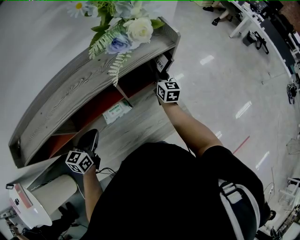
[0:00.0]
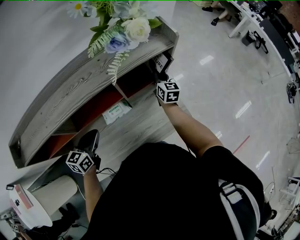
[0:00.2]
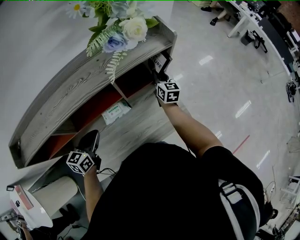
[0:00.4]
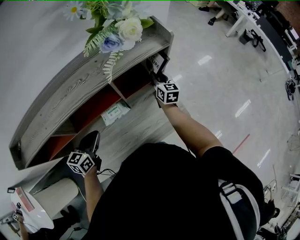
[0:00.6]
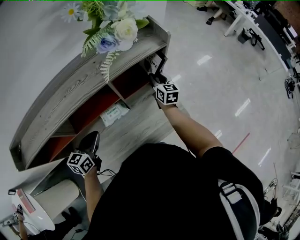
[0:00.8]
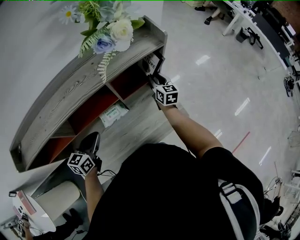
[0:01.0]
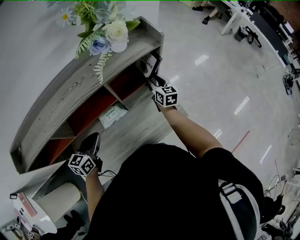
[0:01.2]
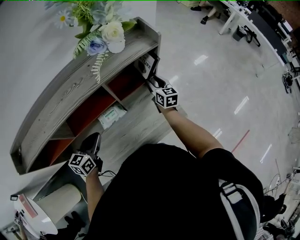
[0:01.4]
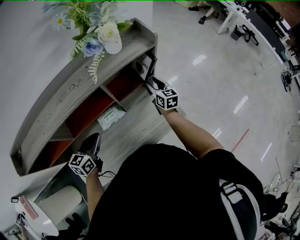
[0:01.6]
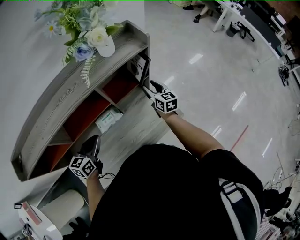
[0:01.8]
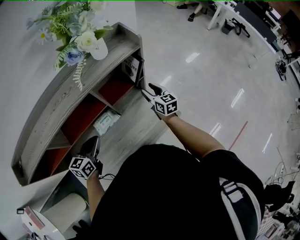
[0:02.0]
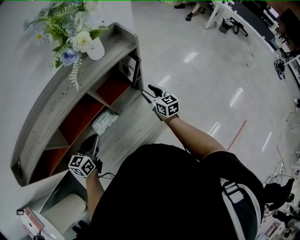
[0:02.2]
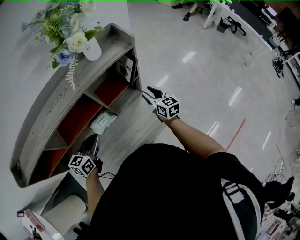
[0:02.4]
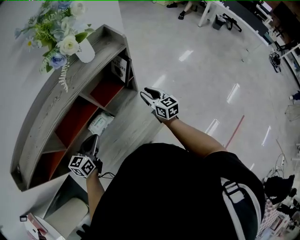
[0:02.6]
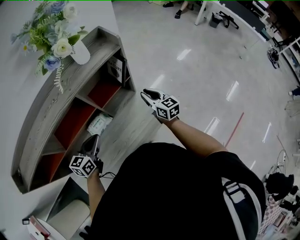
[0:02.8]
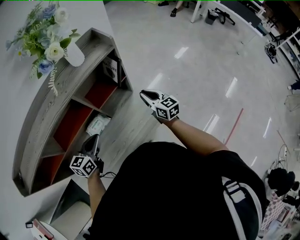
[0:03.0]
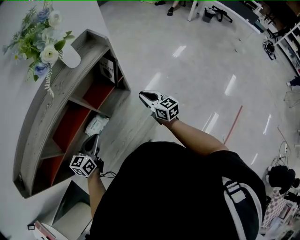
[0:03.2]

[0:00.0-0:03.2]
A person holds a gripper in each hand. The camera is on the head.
0:00.0 to 0:01.6: The right gripper goes approximately 5 cm backward, and opens up.
0:01.6 to 0:03.2: The left gripper goes roughly 10 cm to the right. The right gripper is displaced backward and to the right by roughly 15 cm, and closes its fingers.

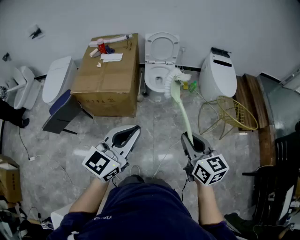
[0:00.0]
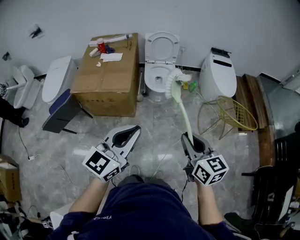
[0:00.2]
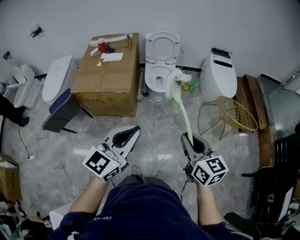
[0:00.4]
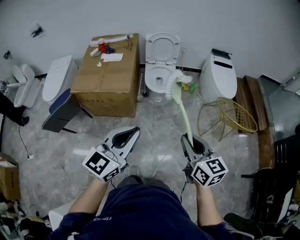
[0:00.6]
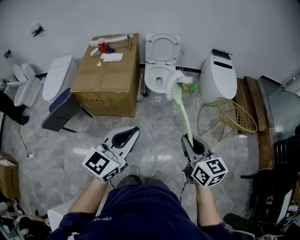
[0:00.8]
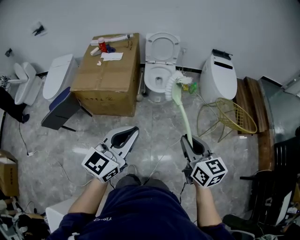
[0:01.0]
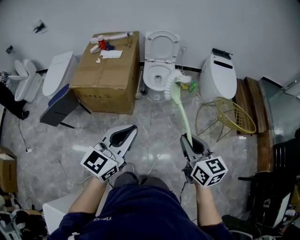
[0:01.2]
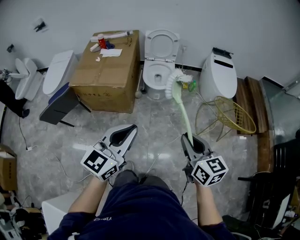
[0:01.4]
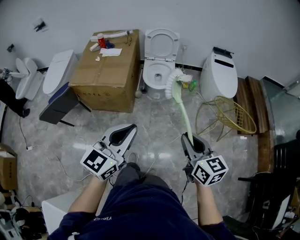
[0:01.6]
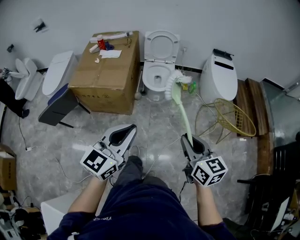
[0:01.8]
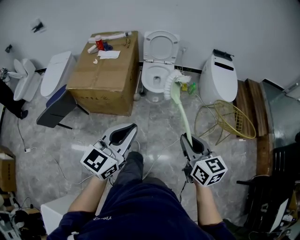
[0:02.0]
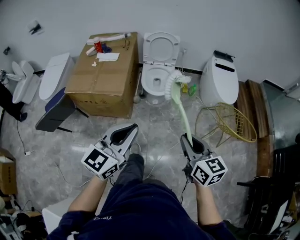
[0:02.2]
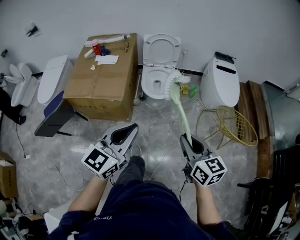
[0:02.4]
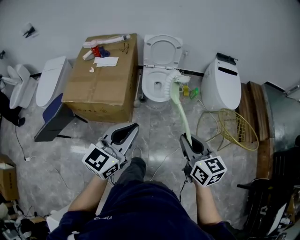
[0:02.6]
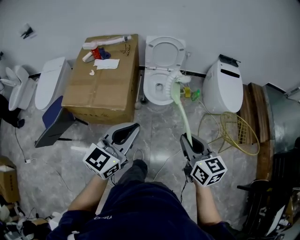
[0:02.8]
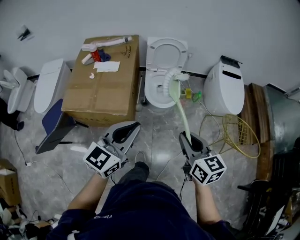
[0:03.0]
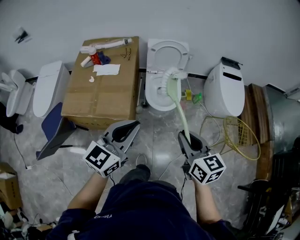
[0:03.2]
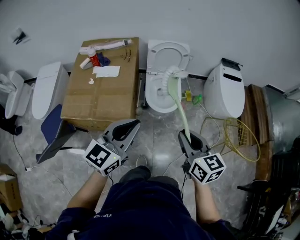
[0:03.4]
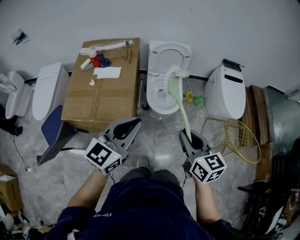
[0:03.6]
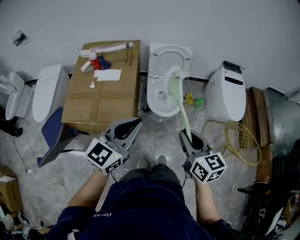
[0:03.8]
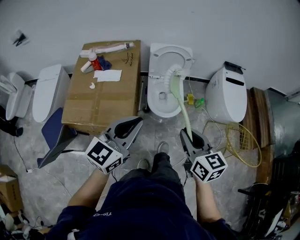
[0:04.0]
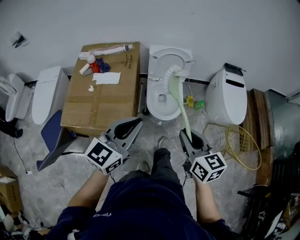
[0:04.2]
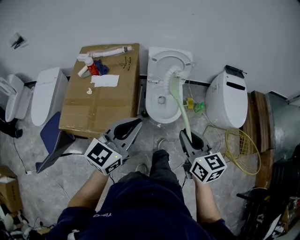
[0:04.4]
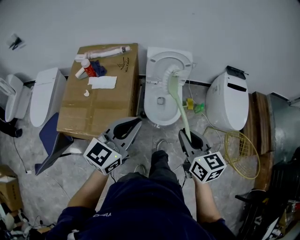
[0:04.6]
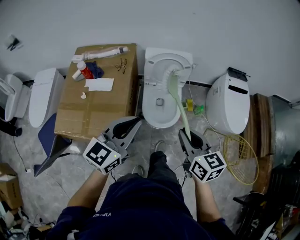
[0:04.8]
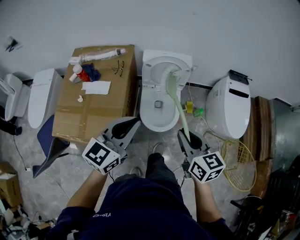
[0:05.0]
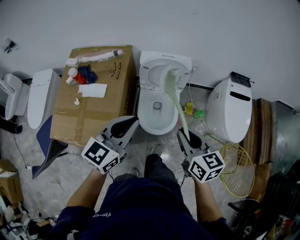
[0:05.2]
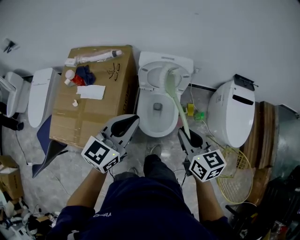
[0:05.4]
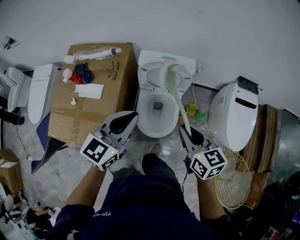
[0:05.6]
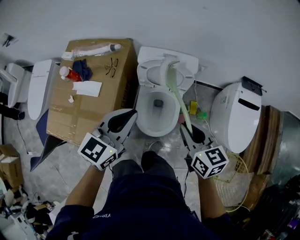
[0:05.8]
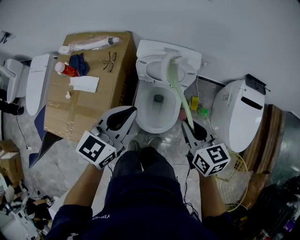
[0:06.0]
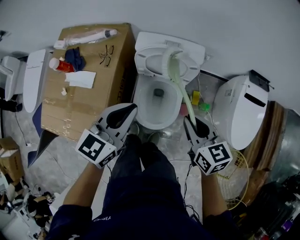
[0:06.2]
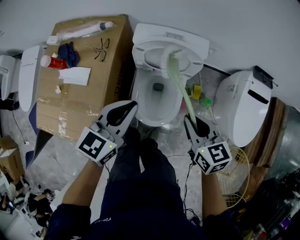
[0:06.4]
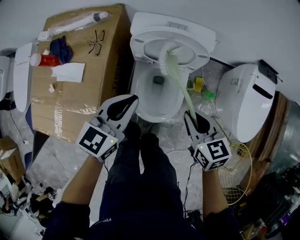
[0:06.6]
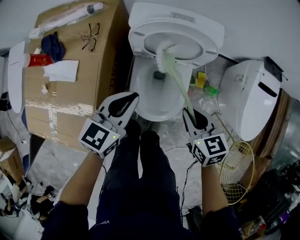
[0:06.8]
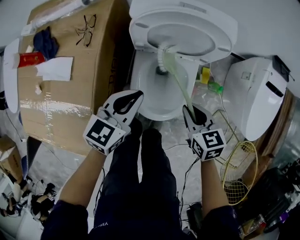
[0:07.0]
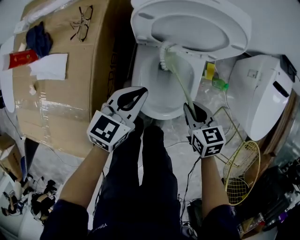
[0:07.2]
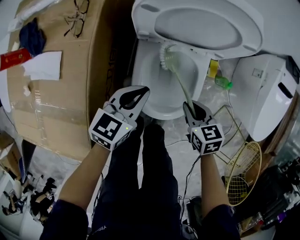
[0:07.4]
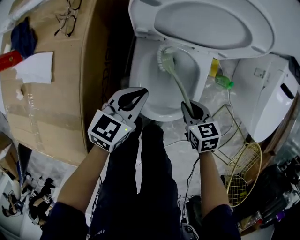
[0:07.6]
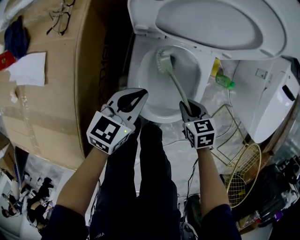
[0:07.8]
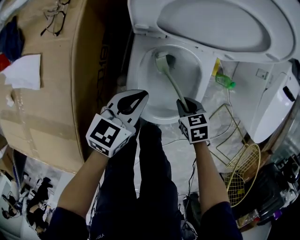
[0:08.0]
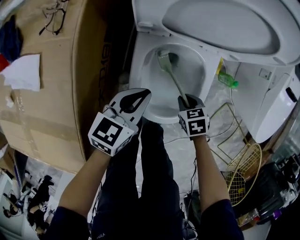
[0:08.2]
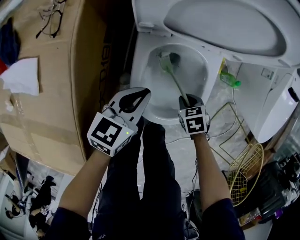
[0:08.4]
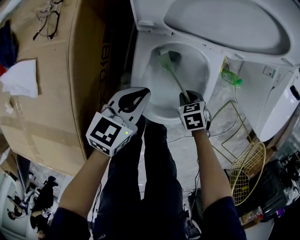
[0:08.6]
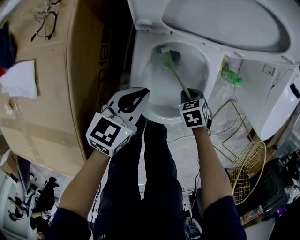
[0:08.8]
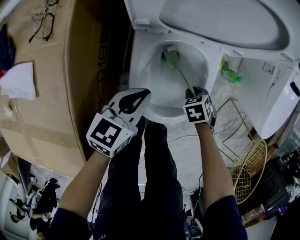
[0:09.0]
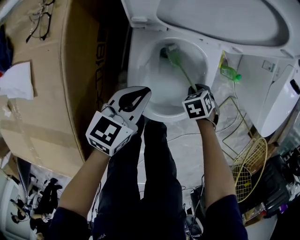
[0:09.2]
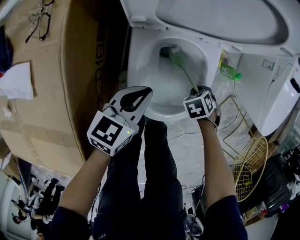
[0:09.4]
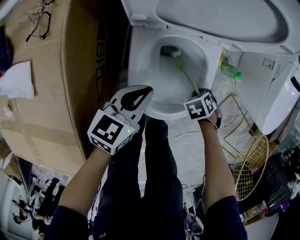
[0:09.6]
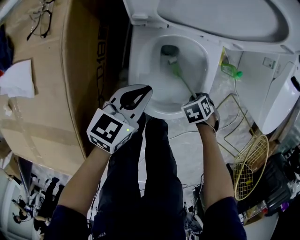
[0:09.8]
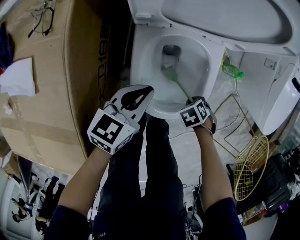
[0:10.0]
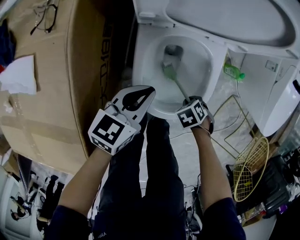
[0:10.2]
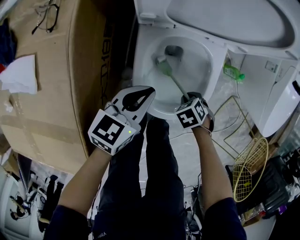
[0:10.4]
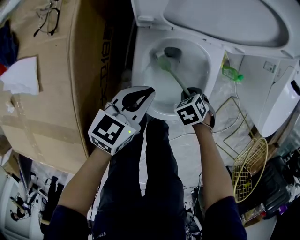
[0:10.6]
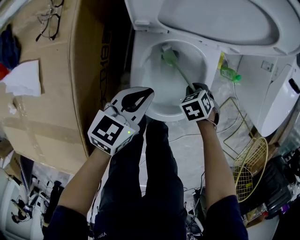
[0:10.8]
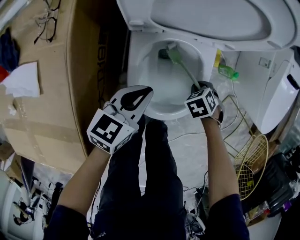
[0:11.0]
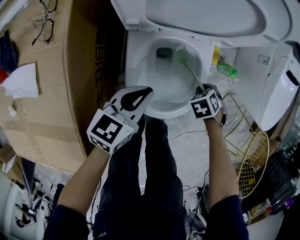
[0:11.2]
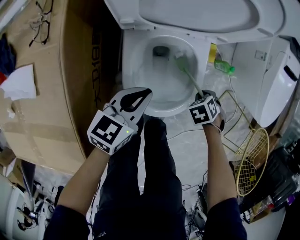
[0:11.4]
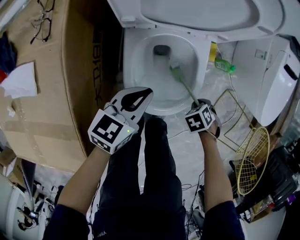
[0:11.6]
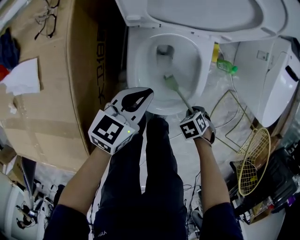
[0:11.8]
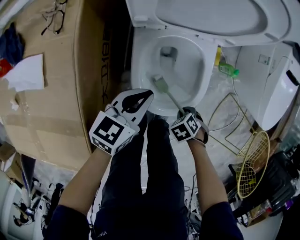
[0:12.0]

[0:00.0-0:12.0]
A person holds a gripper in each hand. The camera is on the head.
0:00.0 to 0:01.6: Both grippers travel together to the right, approximately 5 cm.
0:01.6 to 0:03.0: The right gripper is displaced forward and to the left by roughly 25 cm. The left gripper moves forward, approximately 25 cm.
0:03.0 to 0:04.4: The grippers both shift forward by some 15 cm.
0:04.4 to 0:06.0: Both grippers travel together forward, some 30 cm.
0:06.0 to 0:07.6: The two grippers go roughly 40 cm downward. The left gripper swivels roughly 20 degrees. Meanwhile the right gripper rotates some 30 degrees.
0:07.6 to 0:09.0: The left gripper goes roughly 5 cm downward. The right gripper goes approximately 15 cm downward, and angles its fingers downward, by approximately 30 degrees.
0:09.0 to 0:10.4: The right gripper changes place by some 5 cm.
0:10.4 to 0:12.0: The right gripper shifts by approximately 10 cm.

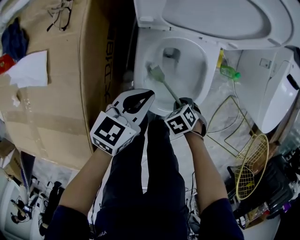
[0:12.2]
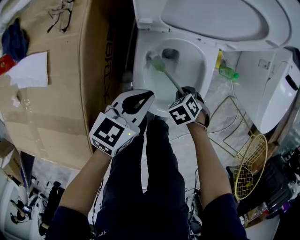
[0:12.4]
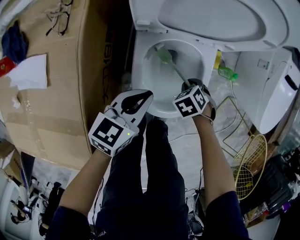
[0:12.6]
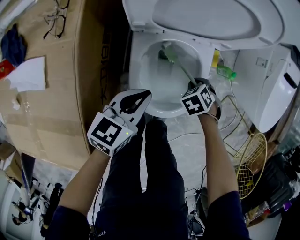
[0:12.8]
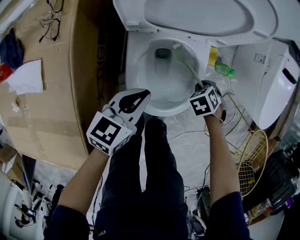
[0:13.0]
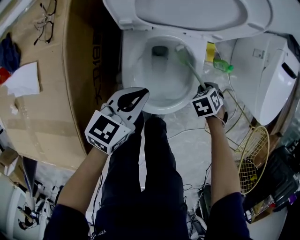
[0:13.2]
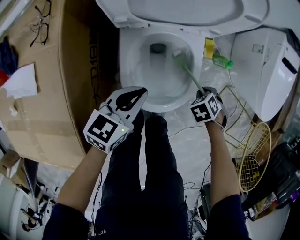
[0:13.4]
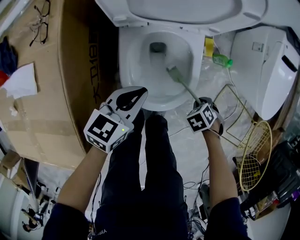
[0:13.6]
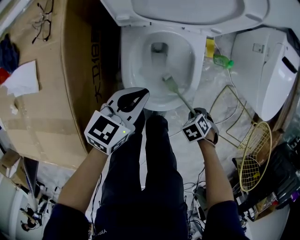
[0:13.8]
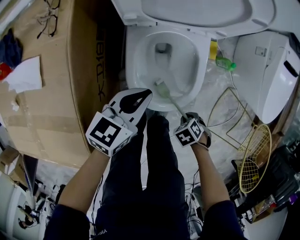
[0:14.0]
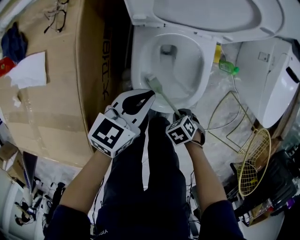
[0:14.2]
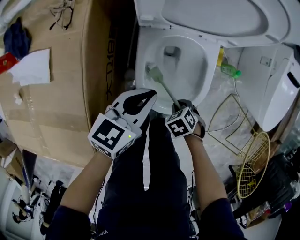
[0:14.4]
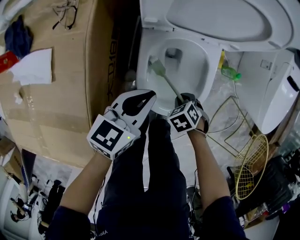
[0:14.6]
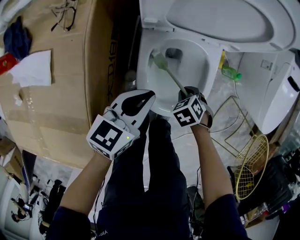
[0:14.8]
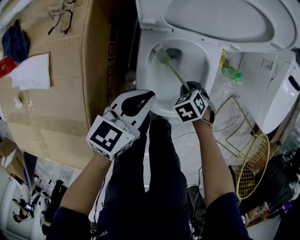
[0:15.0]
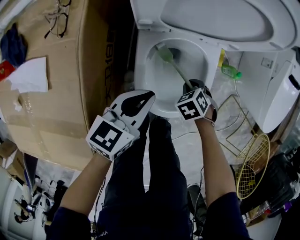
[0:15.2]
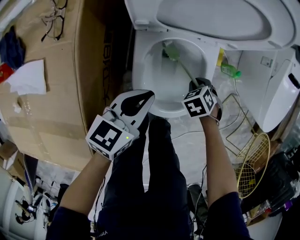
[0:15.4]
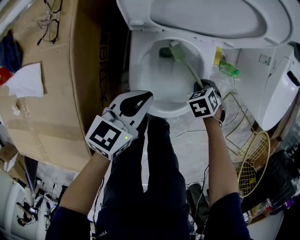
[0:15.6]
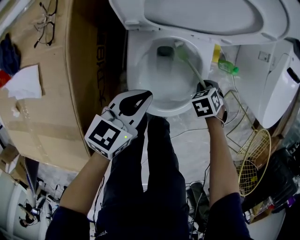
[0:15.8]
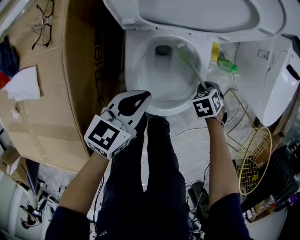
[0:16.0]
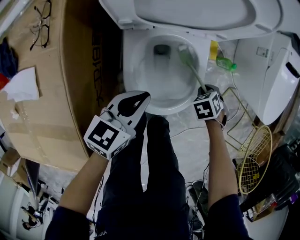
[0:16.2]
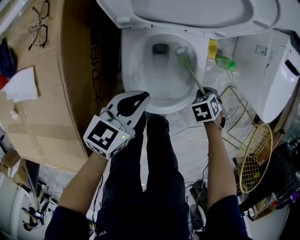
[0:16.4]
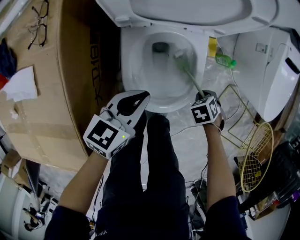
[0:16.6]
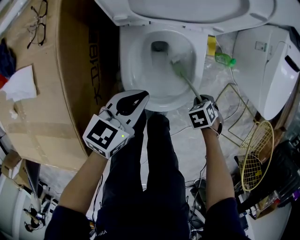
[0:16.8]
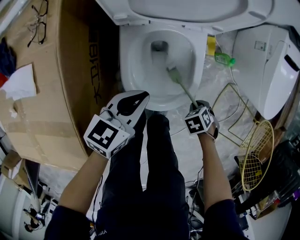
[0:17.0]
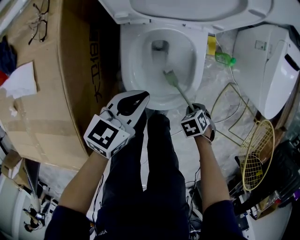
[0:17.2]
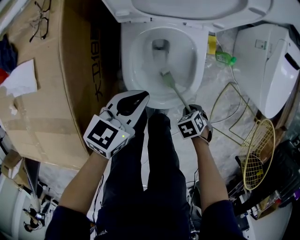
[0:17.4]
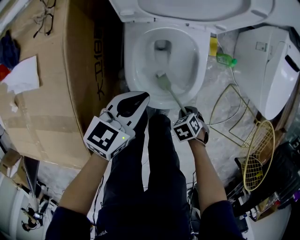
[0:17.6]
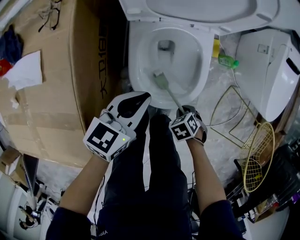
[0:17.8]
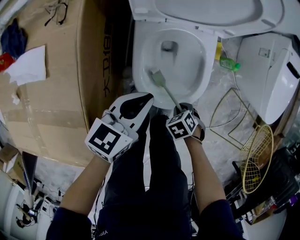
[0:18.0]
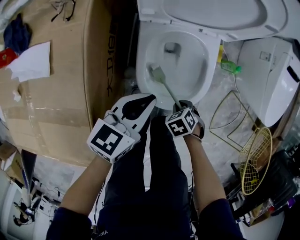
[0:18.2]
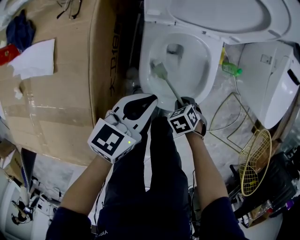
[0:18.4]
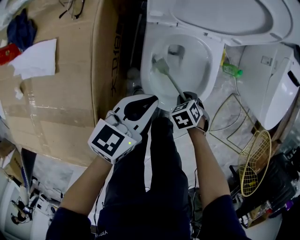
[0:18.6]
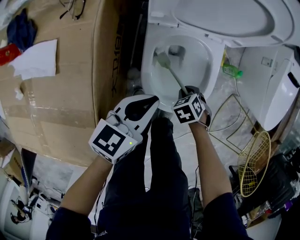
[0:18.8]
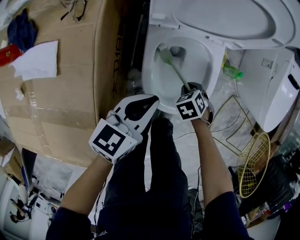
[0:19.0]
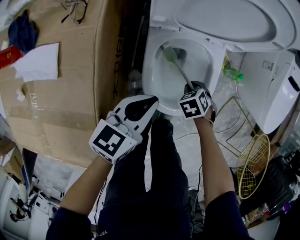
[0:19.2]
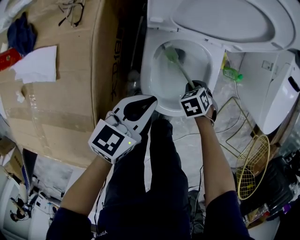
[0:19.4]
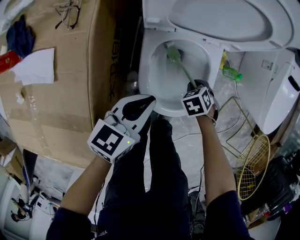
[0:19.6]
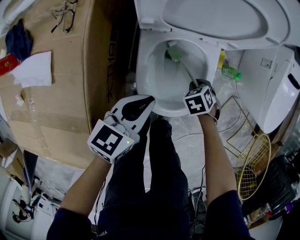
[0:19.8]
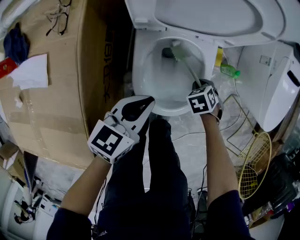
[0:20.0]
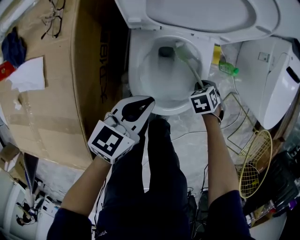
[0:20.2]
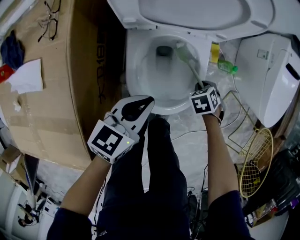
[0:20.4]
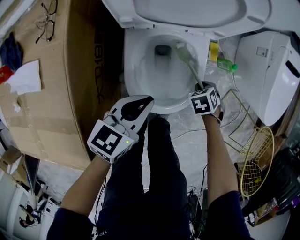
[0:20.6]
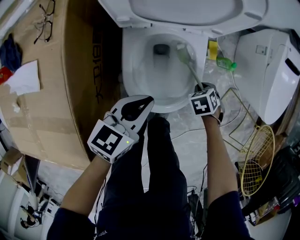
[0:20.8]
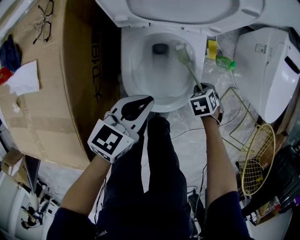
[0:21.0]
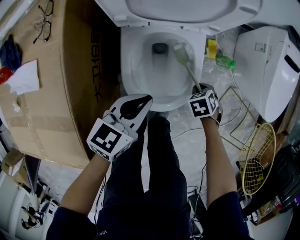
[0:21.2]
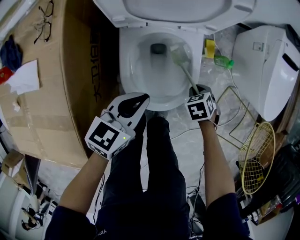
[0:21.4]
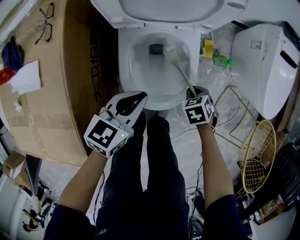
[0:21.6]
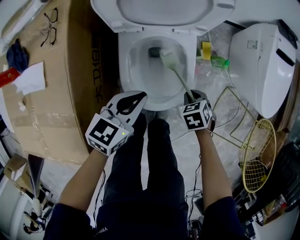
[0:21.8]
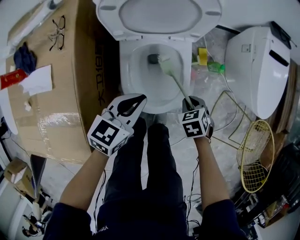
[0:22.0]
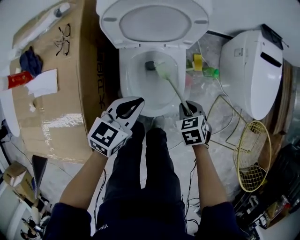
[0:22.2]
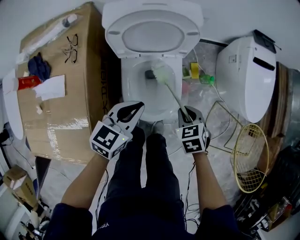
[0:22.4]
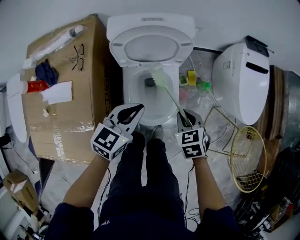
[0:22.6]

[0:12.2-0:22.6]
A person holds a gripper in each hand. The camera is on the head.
0:12.2 to 0:13.6: The right gripper shifts by approximately 15 cm.
0:13.6 to 0:15.2: The right gripper changes place by approximately 15 cm.
0:15.2 to 0:16.6: The right gripper ends up approximately 15 cm from where it was.
0:16.6 to 0:18.2: The right gripper ends up some 15 cm from where it was. The left gripper ends up some 5 cm from where it was.
0:18.2 to 0:19.6: The right gripper shifts by some 15 cm.
0:19.6 to 0:21.2: The right gripper ends up approximately 10 cm from where it was, while the left gripper changes place by about 5 cm.
0:21.2 to 0:22.6: The right gripper moves upward, about 30 cm, and swivels some 30 degrees. The left gripper goes some 15 cm upward.
